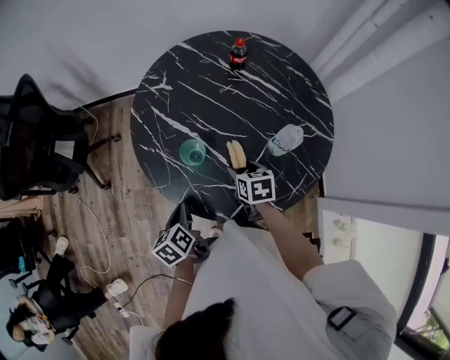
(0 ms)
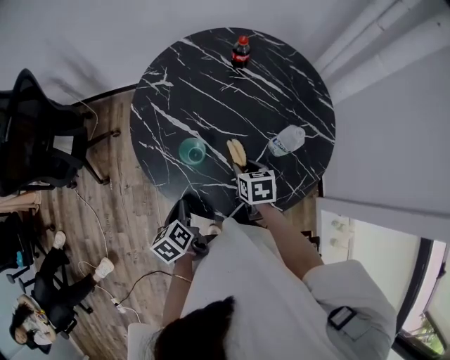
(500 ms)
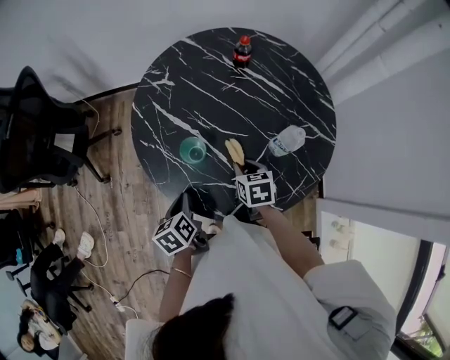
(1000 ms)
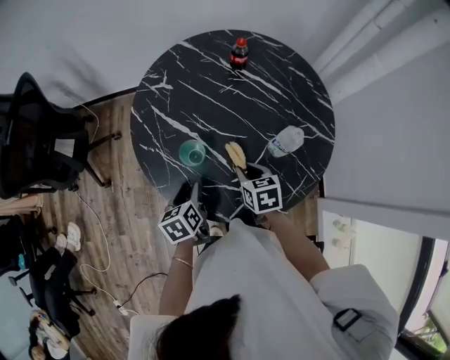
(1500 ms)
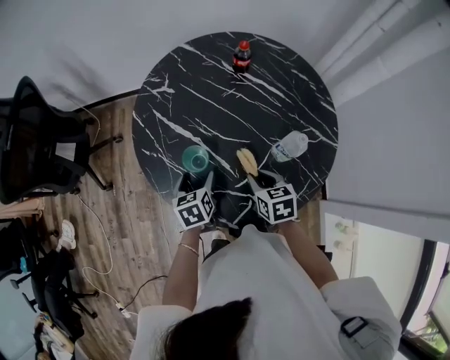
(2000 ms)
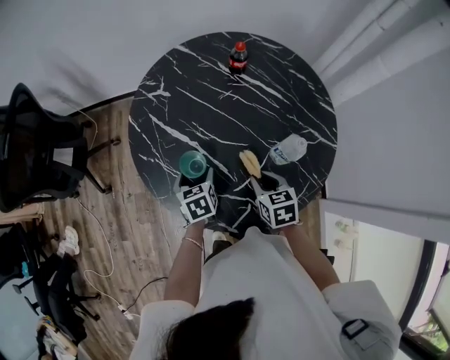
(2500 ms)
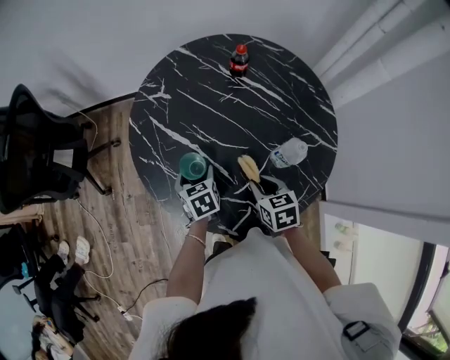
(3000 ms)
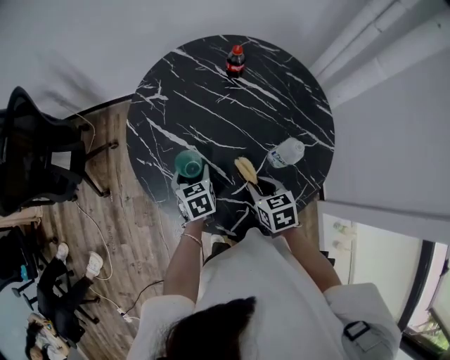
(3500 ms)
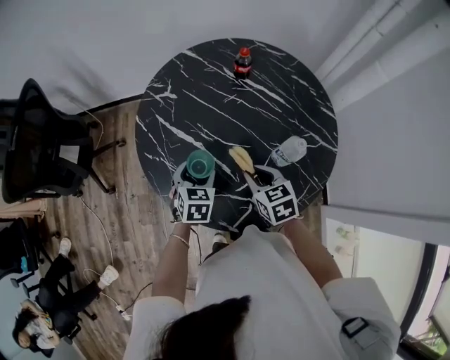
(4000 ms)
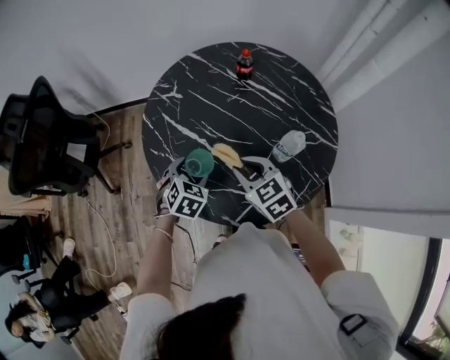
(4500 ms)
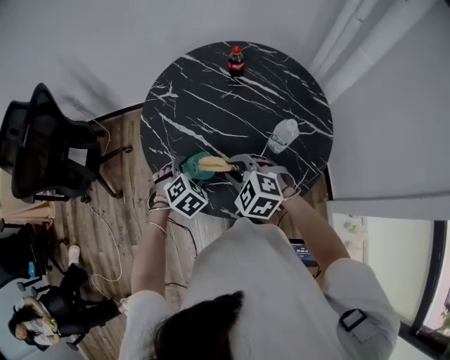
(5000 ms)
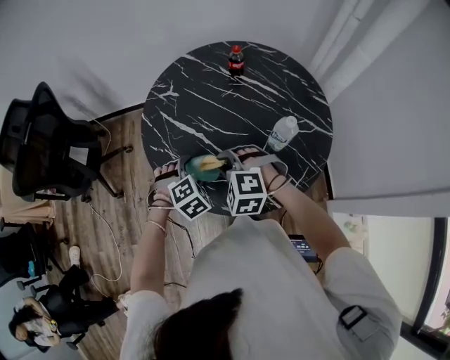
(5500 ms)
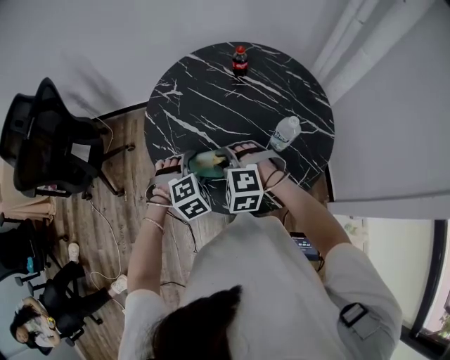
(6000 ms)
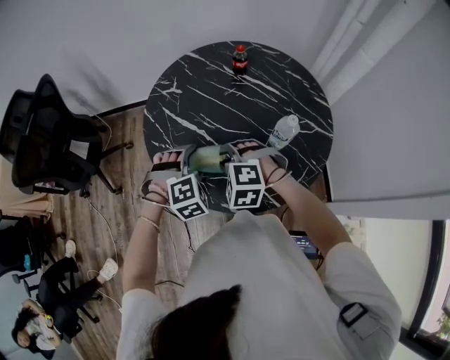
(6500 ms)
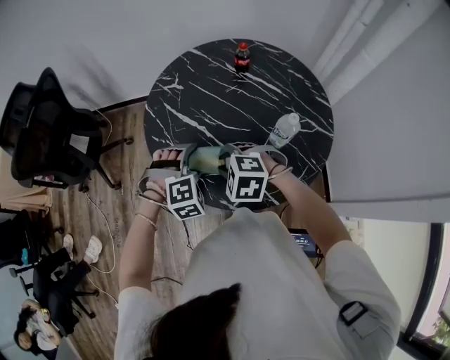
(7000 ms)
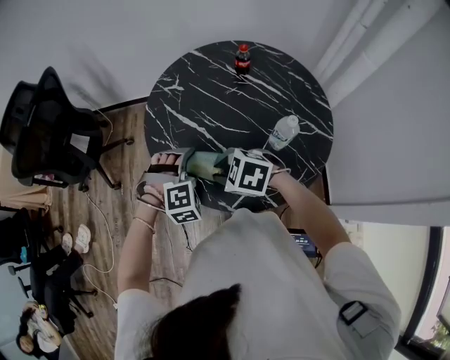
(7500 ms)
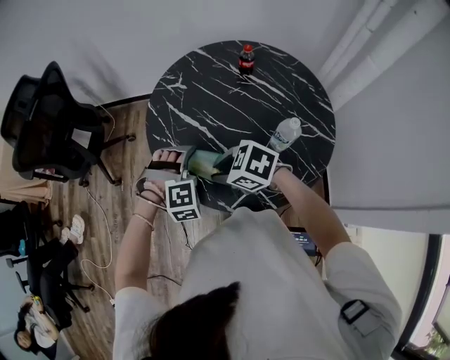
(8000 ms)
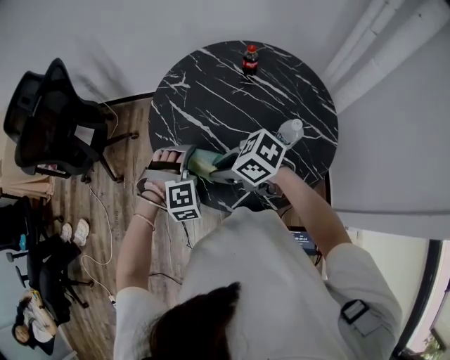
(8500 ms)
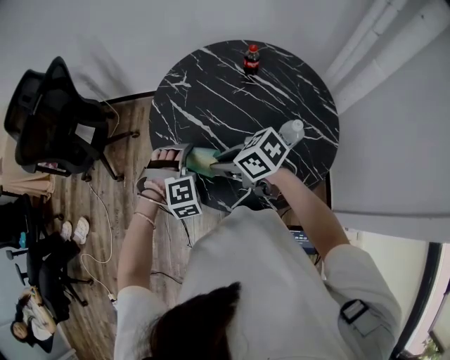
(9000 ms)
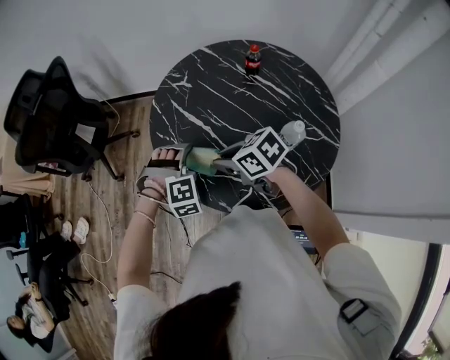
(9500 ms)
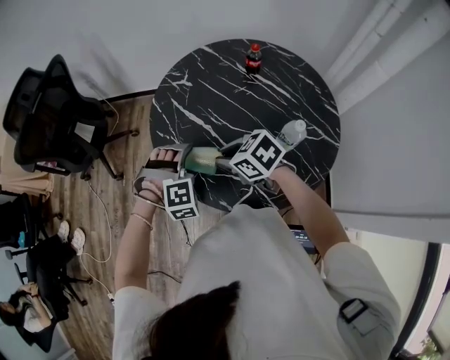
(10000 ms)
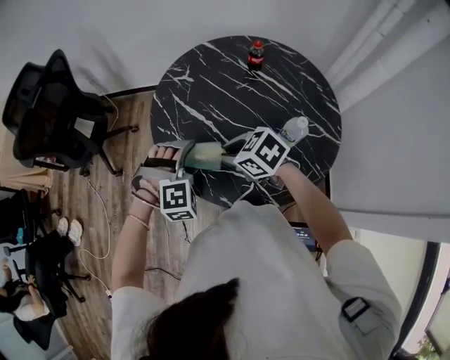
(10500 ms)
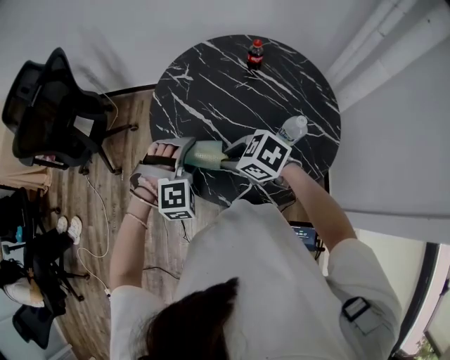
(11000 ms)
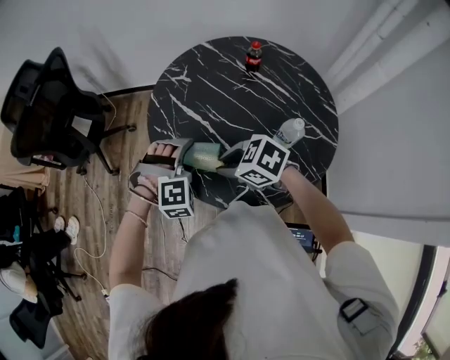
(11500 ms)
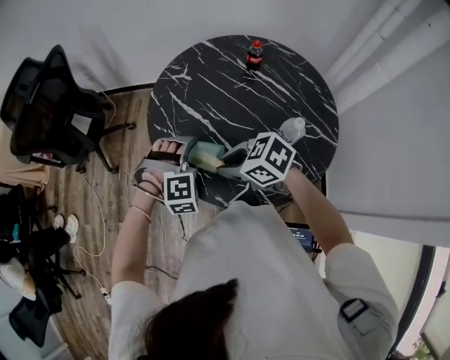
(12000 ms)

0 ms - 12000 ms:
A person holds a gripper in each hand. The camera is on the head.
0 ms - 2000 ms: The right gripper closes. Meanwhile the left gripper is displaced forward and to the right by approximately 15 cm, turns by roughly 20 degrees, and opens.
2000 ms - 4000 ms: The left gripper turns by approximately 30 degrees.
4000 ms - 6000 ms: The right gripper is displaced to the left by some 10 cm, and rolls counterclockwise, seen from behind, by roughly 70 degrees. The left gripper shifts some 5 cm backward, and rotates around the line of its fingers by approximately 50 degrees, clockwise from behind.
6000 ms - 8000 ms: The right gripper moves approximately 5 cm, and swivels about 50 degrees.
8000 ms - 10000 ms: The right gripper changes place by approximately 5 cm.
10000 ms - 12000 ms: The grippers stay close to where they were, moving slightly.

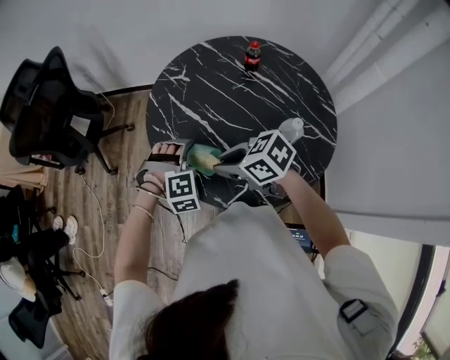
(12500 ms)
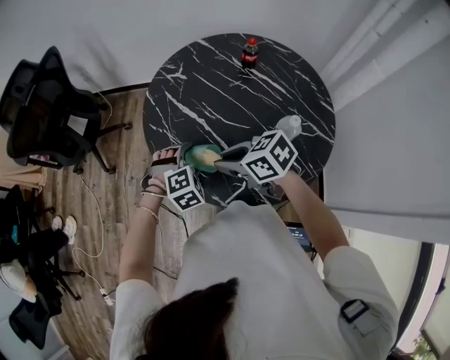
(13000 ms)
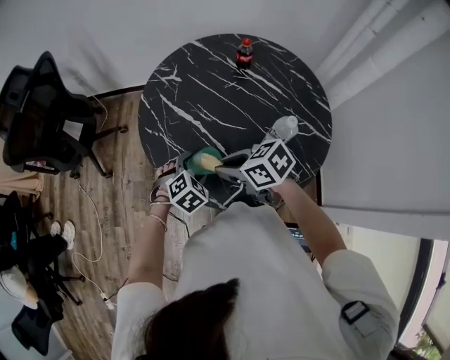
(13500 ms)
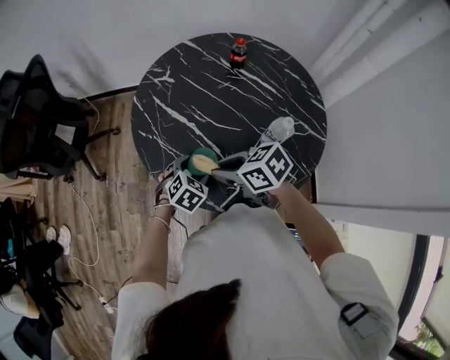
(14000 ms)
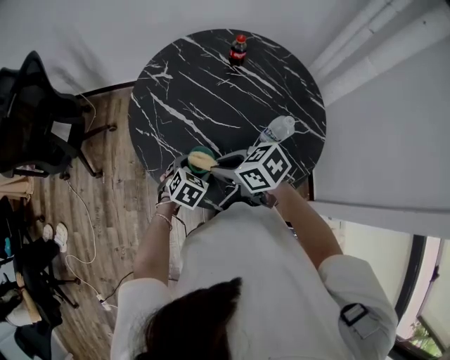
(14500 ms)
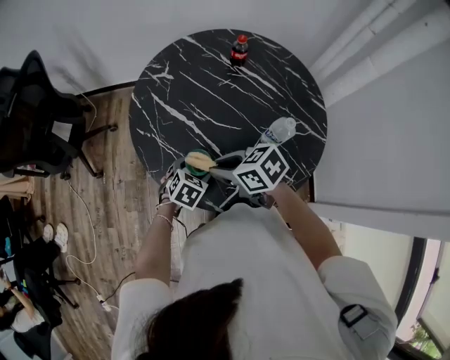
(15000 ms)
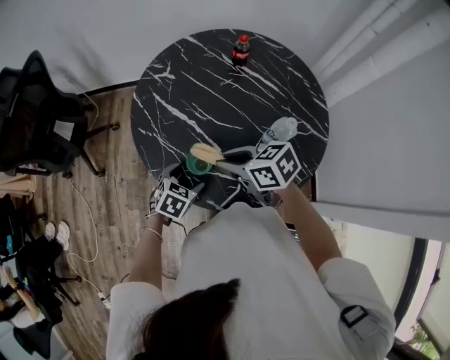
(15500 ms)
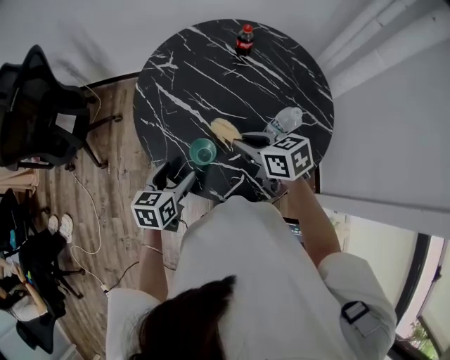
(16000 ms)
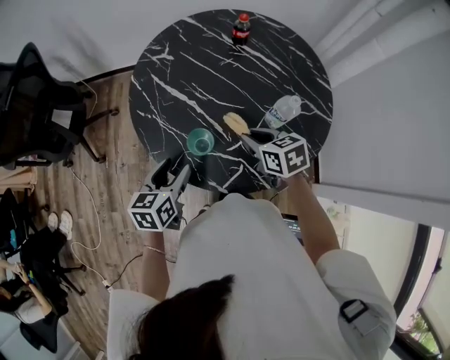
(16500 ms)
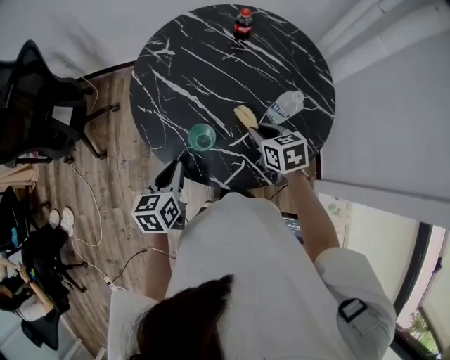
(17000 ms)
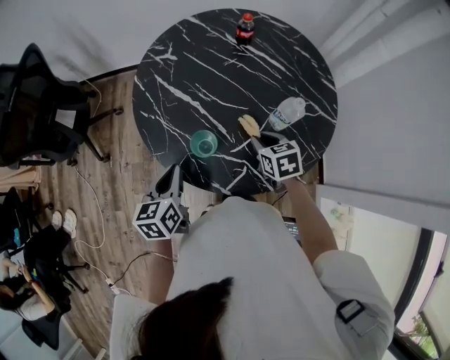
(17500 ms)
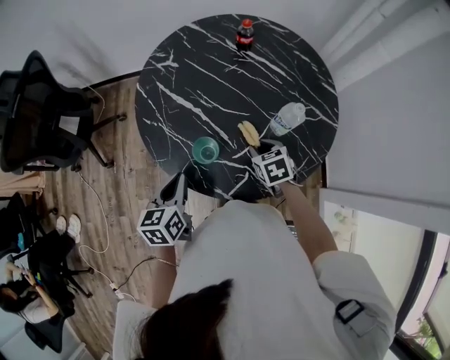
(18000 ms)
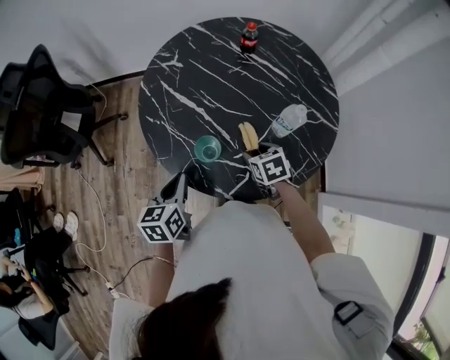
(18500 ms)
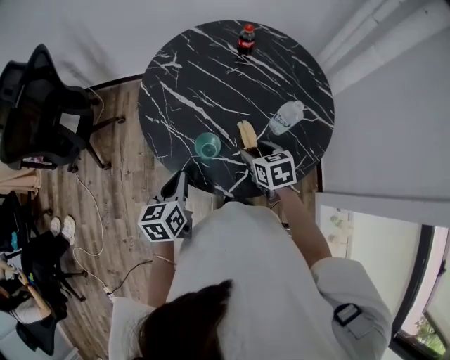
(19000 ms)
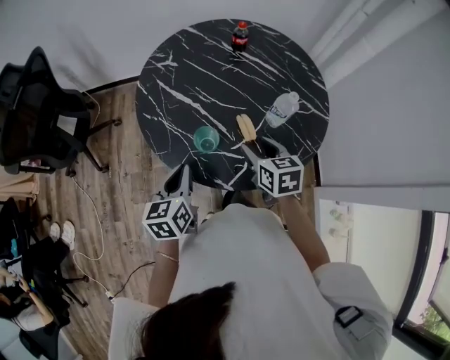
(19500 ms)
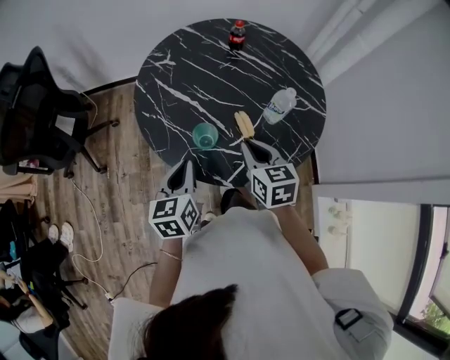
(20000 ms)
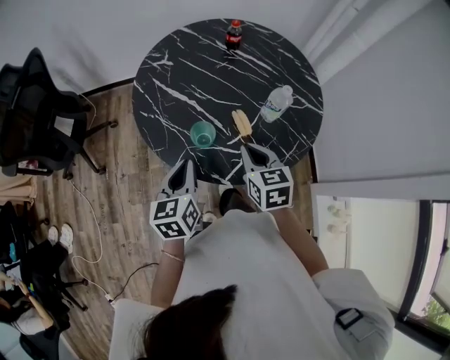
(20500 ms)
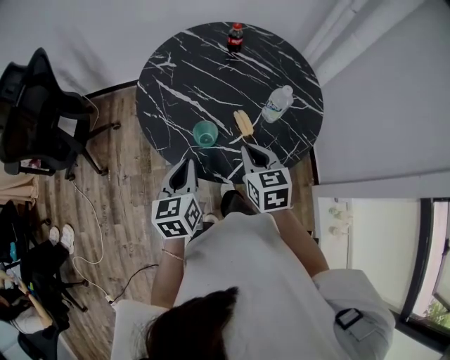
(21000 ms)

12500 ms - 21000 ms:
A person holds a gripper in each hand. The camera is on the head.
12500 ms - 14500 ms: The left gripper moves downward, approximately 10 cm, and twists about 50 degrees counterclockwise, seen from behind.
14500 ms - 16500 ms: The right gripper travels to the right by approximately 10 cm, and changes its angle by some 30 degrees; the left gripper shifts about 15 cm upward and to the left, and rotates some 40 degrees.
16500 ms - 19000 ms: The left gripper closes its fingers. Meanwhile the right gripper opens.
19000 ms - 21000 ms: The left gripper shifts some 5 cm upward. The right gripper heads upward and backward, covering some 10 cm, and closes its fingers.

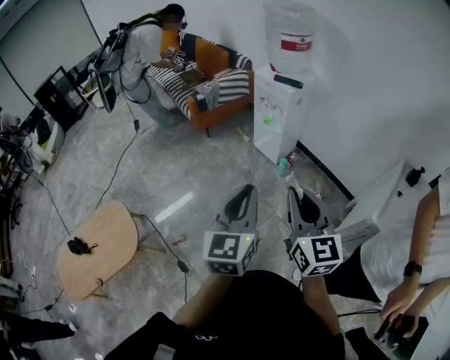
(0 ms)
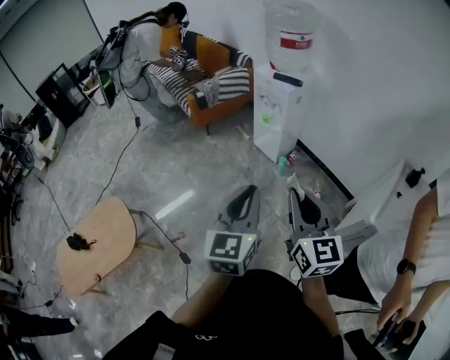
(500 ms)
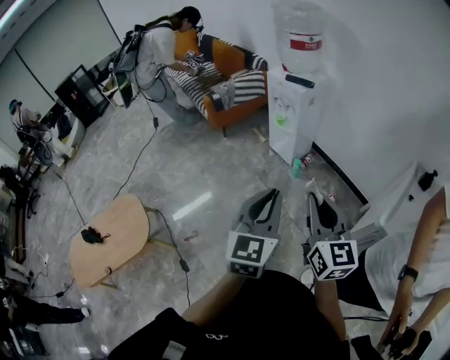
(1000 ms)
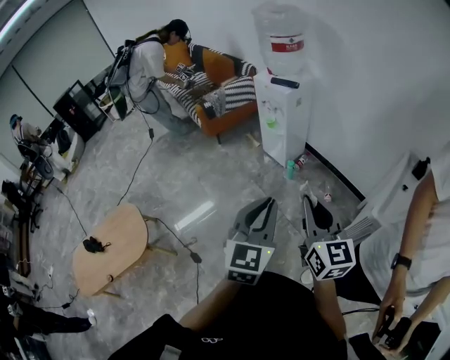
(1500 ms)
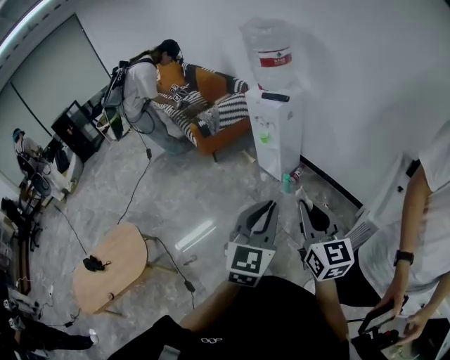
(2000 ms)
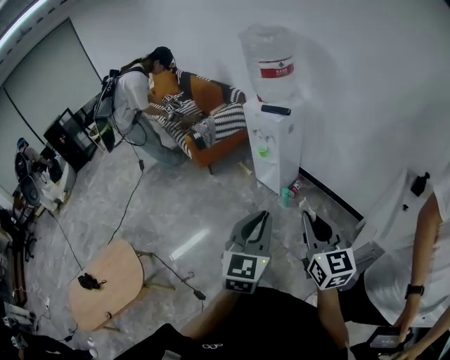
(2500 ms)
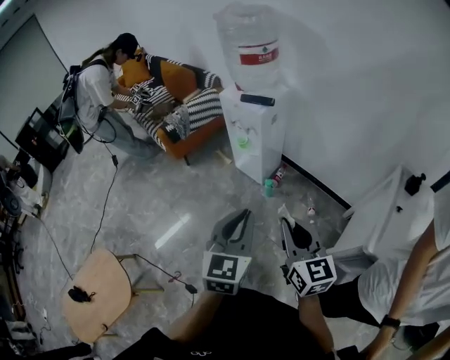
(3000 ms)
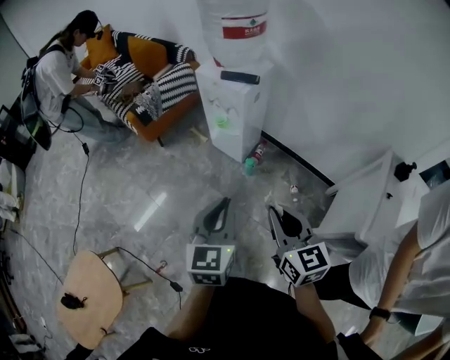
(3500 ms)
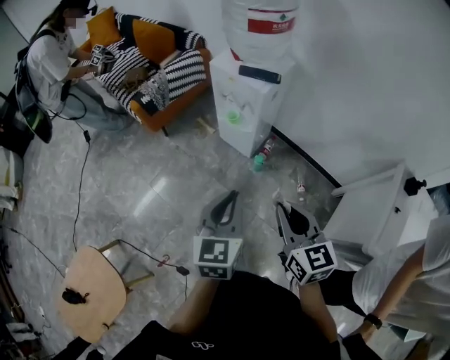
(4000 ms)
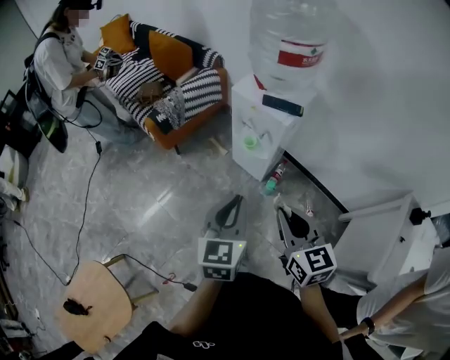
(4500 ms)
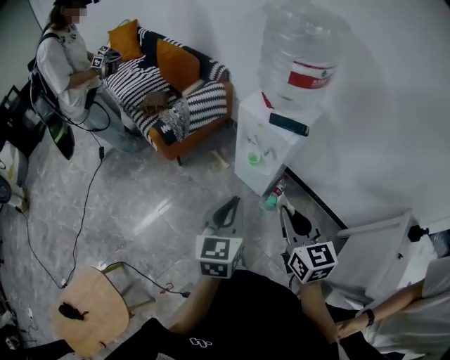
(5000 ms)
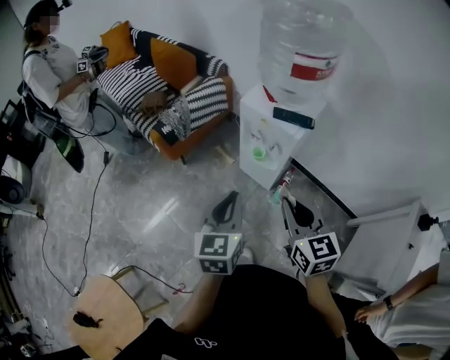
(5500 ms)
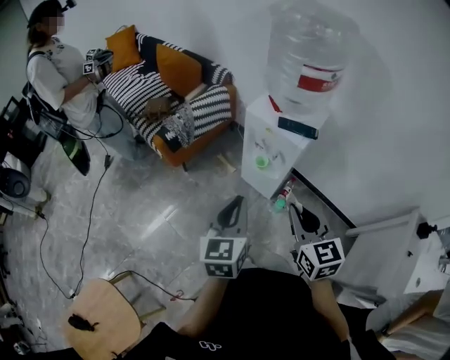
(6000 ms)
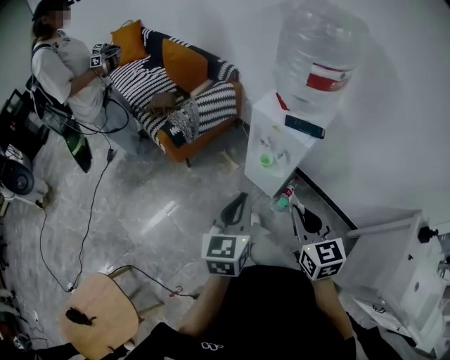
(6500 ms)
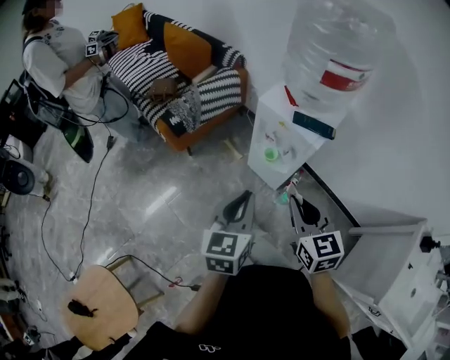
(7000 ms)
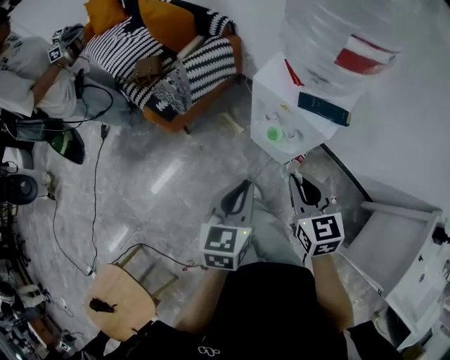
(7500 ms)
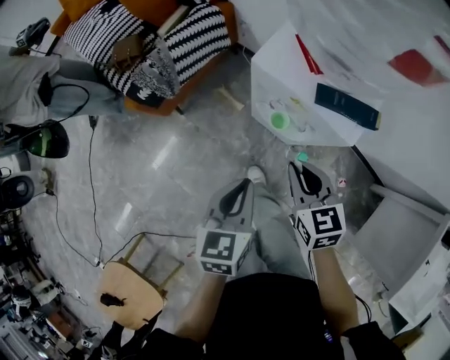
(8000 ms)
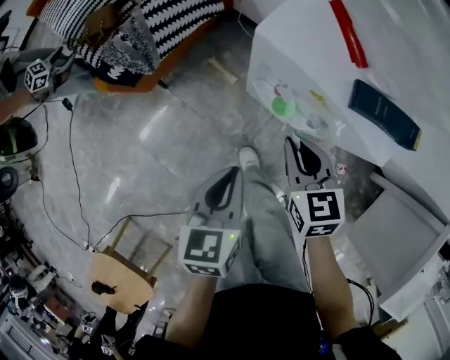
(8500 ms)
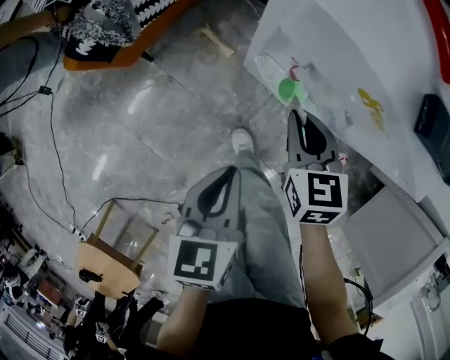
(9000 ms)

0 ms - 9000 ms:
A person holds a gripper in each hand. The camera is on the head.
0 ms - 2000 ms: Both grippers move to the right, approximately 15 cm. The left gripper changes its angle by some 20 degrees.
2000 ms - 4500 ms: The two grippers go roughly 40 cm forward and to the left. The left gripper swivels some 20 degrees.
4500 ms - 7000 ms: The right gripper goes roughly 15 cm forward, while the left gripper goes about 15 cm forward and to the left.
7000 ms - 9000 ms: The two grippers go approximately 35 cm downward and forward. The left gripper swivels approximately 30 degrees. Meanwhile the right gripper swivels approximately 20 degrees.
